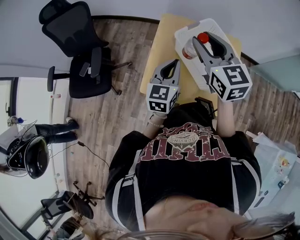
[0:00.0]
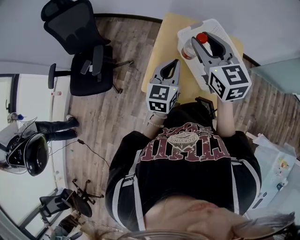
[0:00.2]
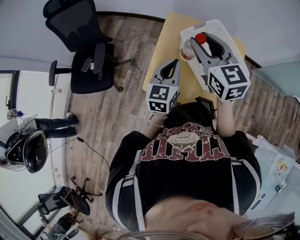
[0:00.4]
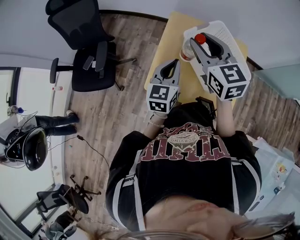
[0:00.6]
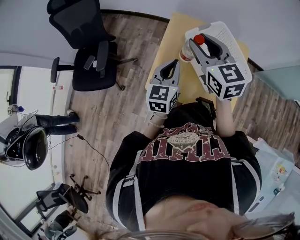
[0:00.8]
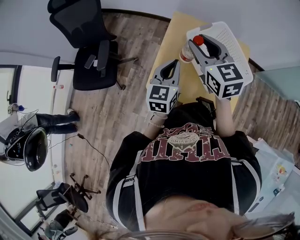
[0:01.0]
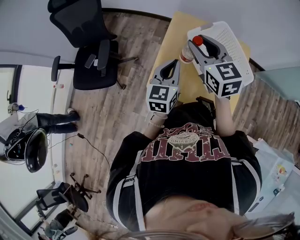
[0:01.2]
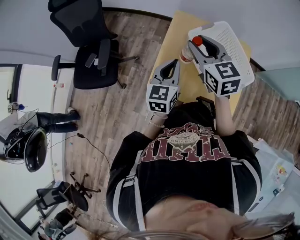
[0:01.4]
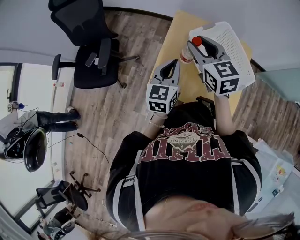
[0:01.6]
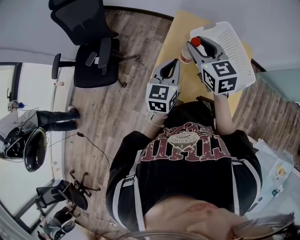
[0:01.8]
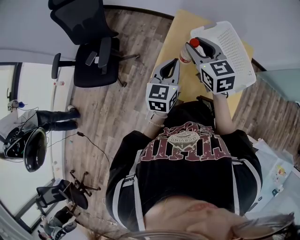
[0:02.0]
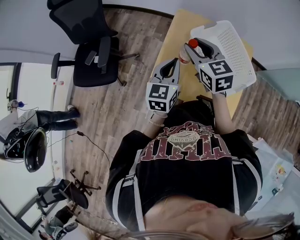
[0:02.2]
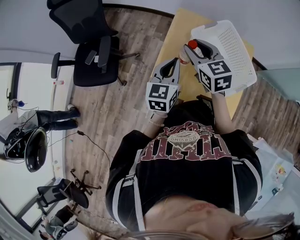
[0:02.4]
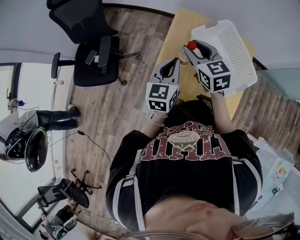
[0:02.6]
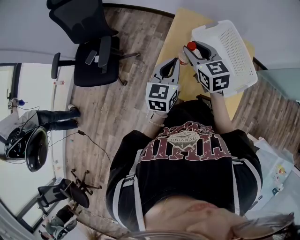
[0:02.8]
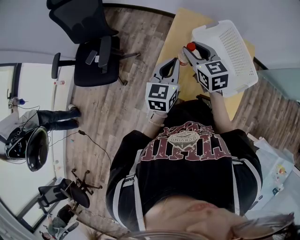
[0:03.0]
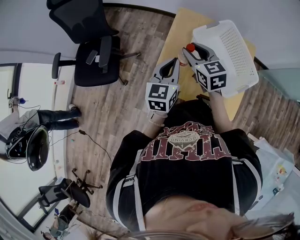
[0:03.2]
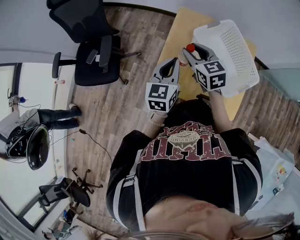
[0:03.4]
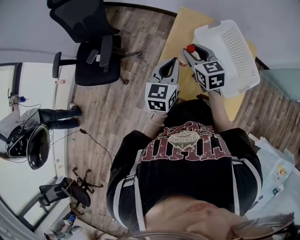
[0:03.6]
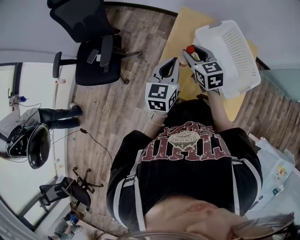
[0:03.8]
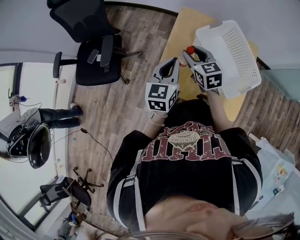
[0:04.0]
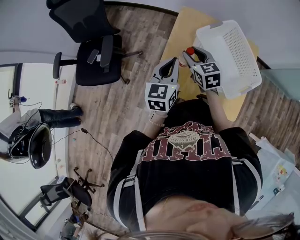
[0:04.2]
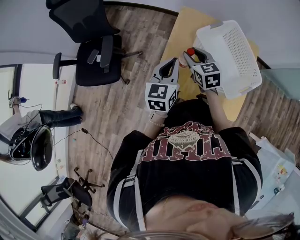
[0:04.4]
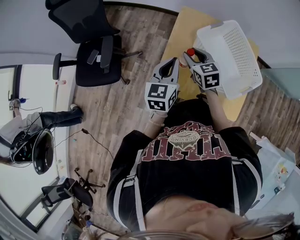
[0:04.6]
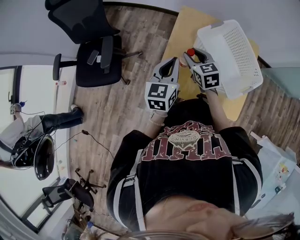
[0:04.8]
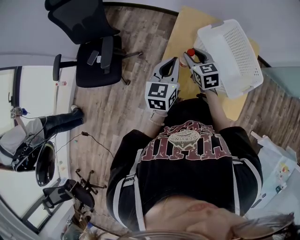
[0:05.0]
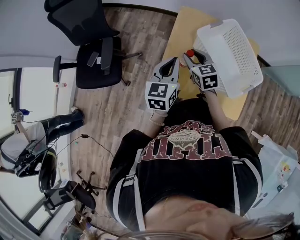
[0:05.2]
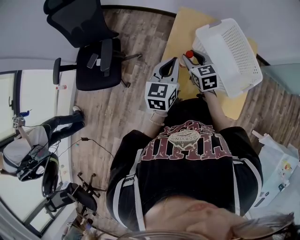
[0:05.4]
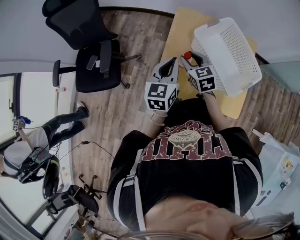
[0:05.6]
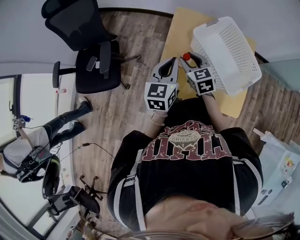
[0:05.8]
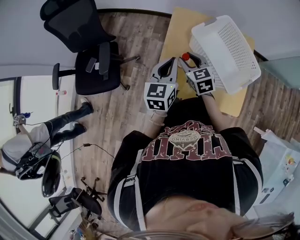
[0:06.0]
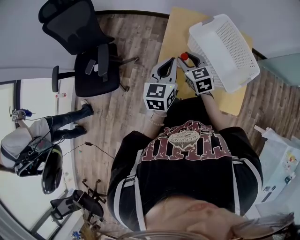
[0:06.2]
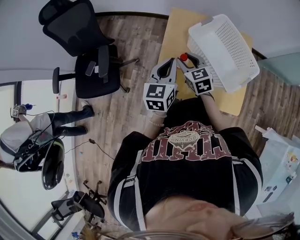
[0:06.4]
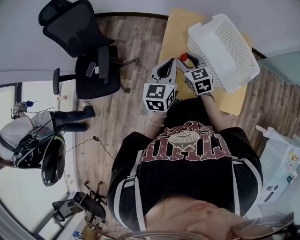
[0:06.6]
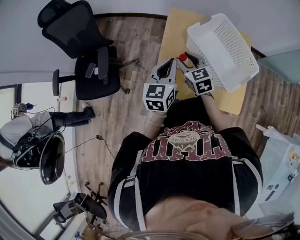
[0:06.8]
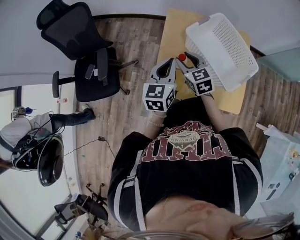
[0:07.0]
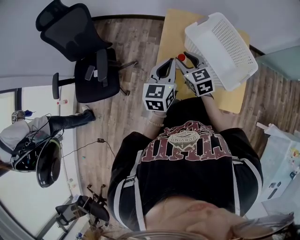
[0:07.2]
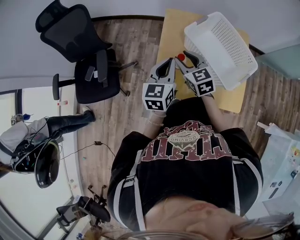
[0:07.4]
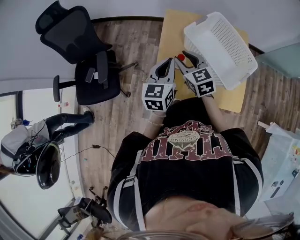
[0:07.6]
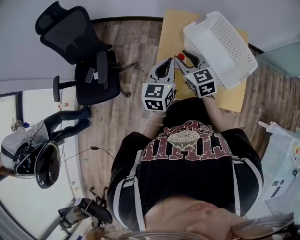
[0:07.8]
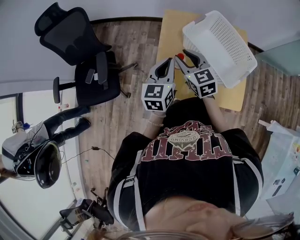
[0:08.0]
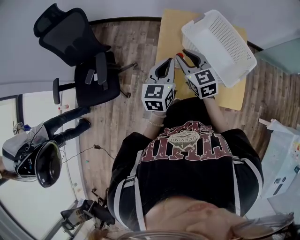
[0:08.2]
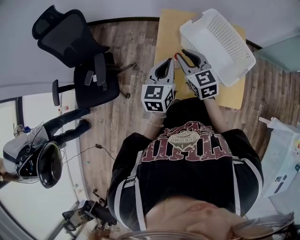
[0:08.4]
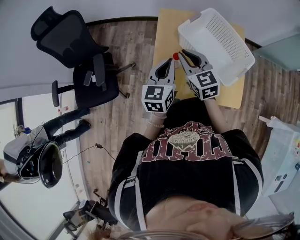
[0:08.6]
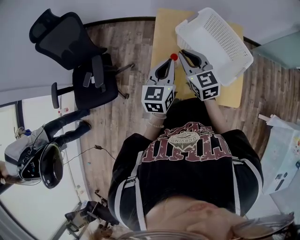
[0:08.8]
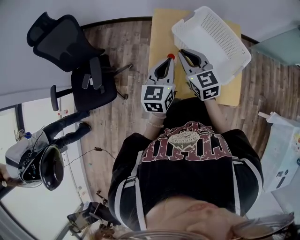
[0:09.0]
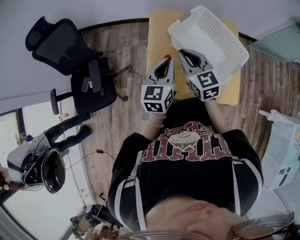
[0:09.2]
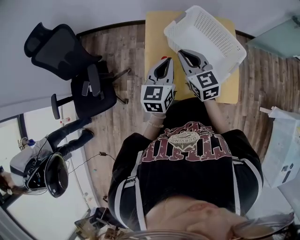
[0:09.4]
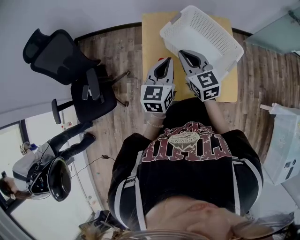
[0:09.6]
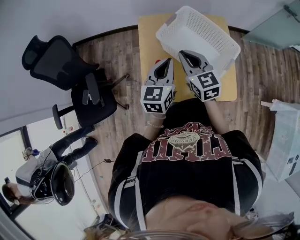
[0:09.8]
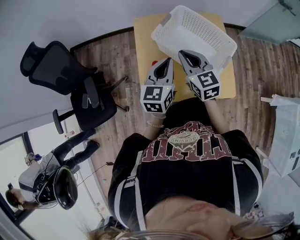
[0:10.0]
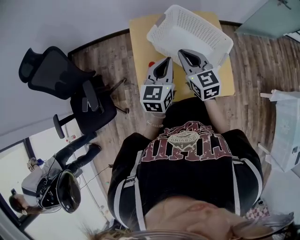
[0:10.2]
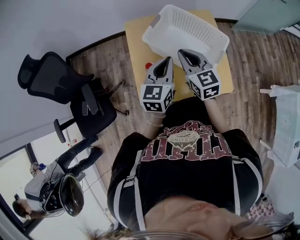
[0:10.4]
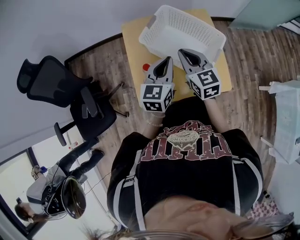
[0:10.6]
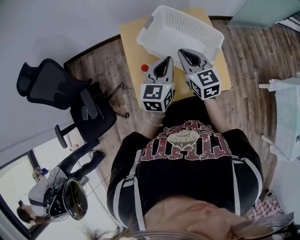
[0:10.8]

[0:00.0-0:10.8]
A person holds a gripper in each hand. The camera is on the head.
0:00.0 to 0:01.6: The left gripper goes about 5 cm to the left. Meanwhile the right gripper goes approximately 10 cm to the left and downward.
0:01.6 to 0:03.0: The right gripper is displaced downward by approximately 10 cm.
0:03.0 to 0:04.6: The right gripper heads downward, covering approximately 10 cm.
0:04.6 to 0:07.8: There are only small adjustments of the grippers.
0:07.8 to 0:09.2: Both grippers travel together to the right, about 5 cm. The right gripper closes up.
0:09.2 to 0:10.8: The two grippers go about 10 cm to the right.

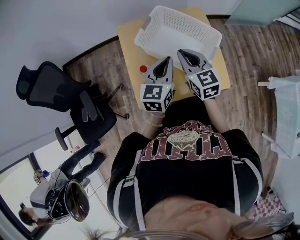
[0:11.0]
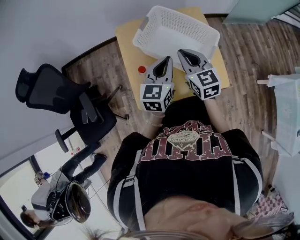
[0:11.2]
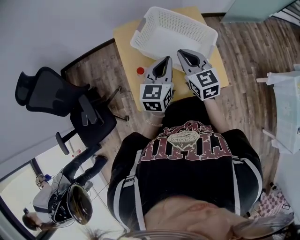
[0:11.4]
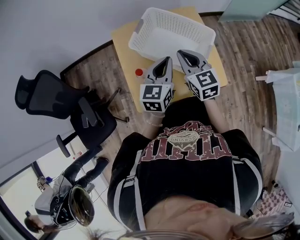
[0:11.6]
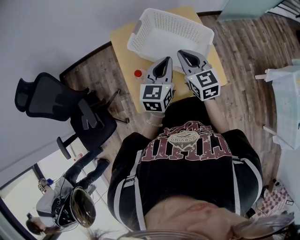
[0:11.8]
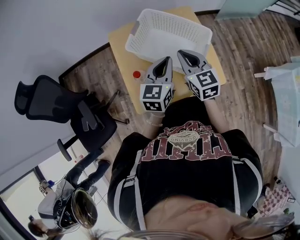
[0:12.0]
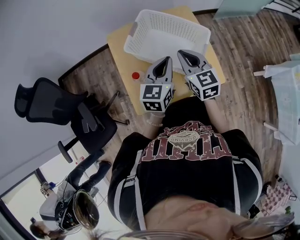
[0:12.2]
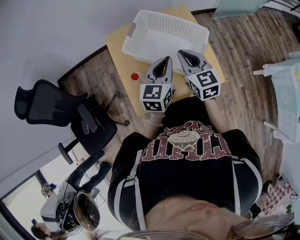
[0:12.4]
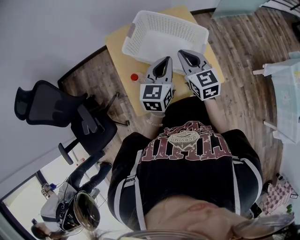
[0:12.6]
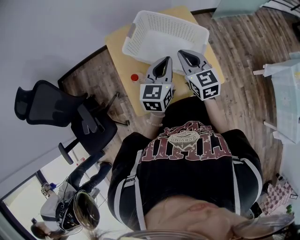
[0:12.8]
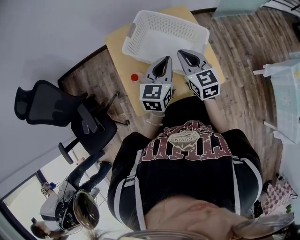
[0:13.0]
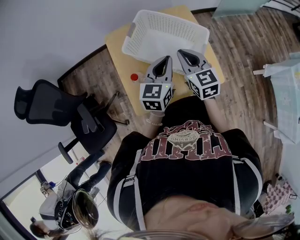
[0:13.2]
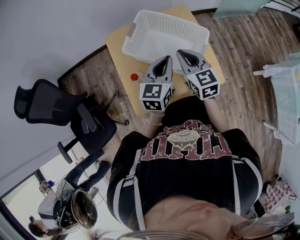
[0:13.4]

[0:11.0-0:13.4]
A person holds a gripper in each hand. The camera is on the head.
0:11.0 to 0:13.4: The grippers move only a little.

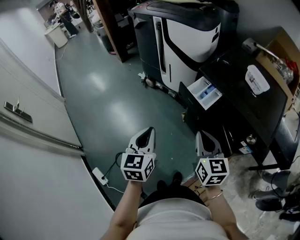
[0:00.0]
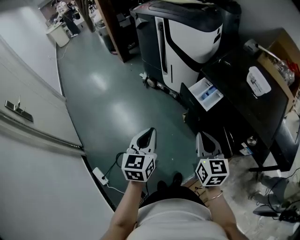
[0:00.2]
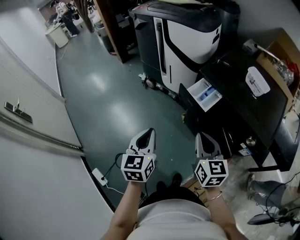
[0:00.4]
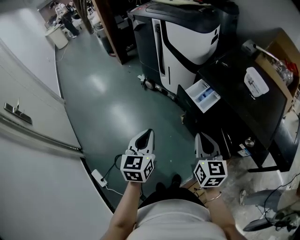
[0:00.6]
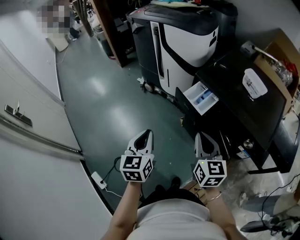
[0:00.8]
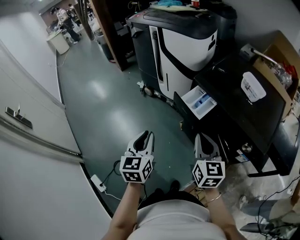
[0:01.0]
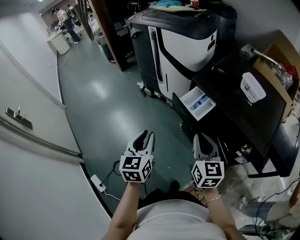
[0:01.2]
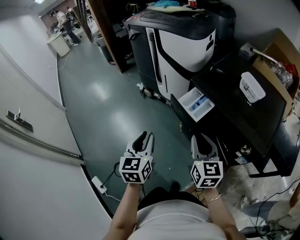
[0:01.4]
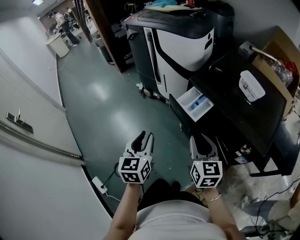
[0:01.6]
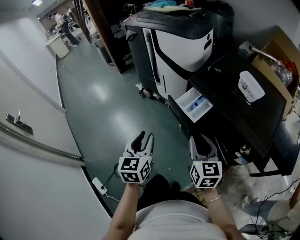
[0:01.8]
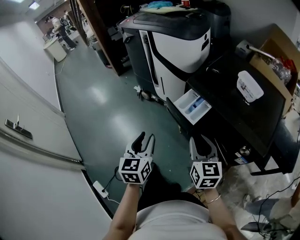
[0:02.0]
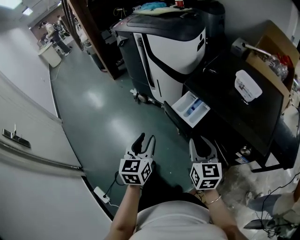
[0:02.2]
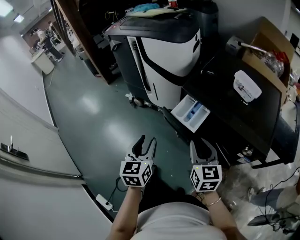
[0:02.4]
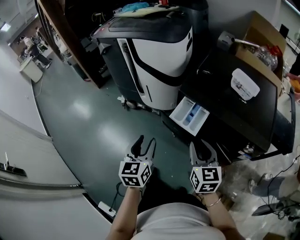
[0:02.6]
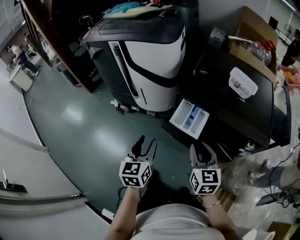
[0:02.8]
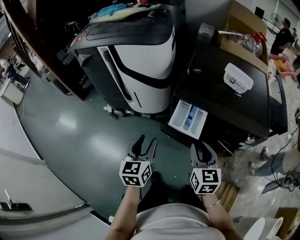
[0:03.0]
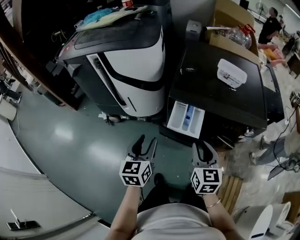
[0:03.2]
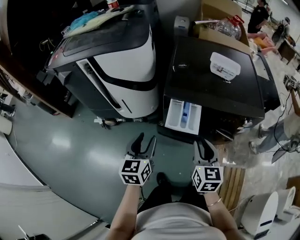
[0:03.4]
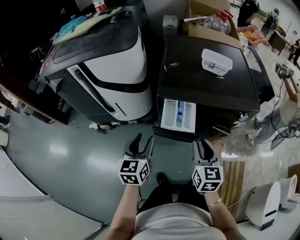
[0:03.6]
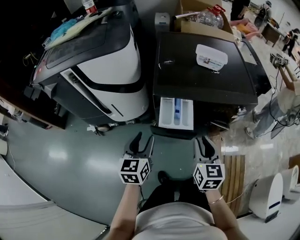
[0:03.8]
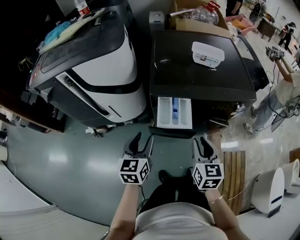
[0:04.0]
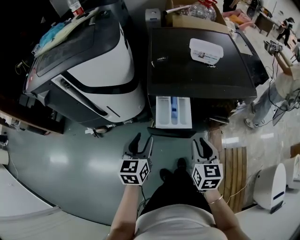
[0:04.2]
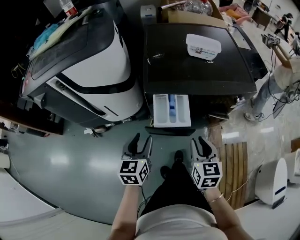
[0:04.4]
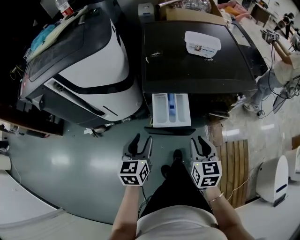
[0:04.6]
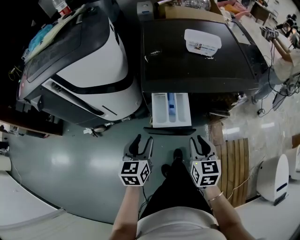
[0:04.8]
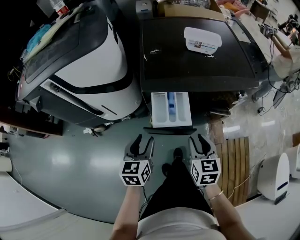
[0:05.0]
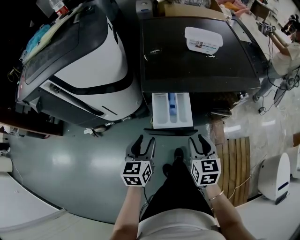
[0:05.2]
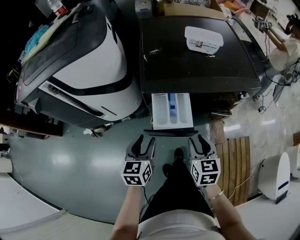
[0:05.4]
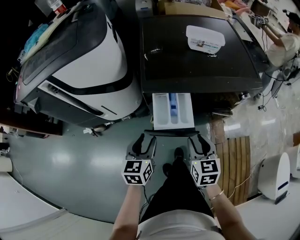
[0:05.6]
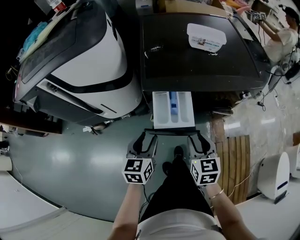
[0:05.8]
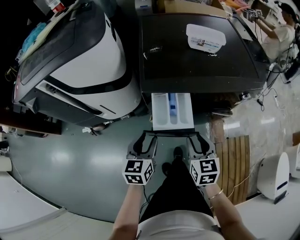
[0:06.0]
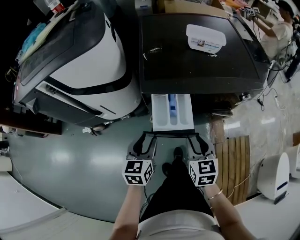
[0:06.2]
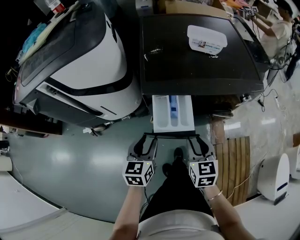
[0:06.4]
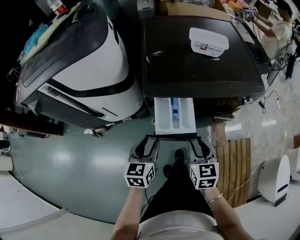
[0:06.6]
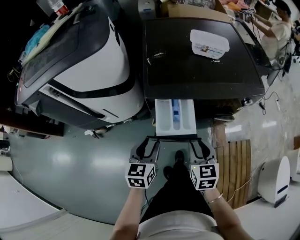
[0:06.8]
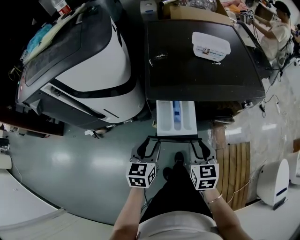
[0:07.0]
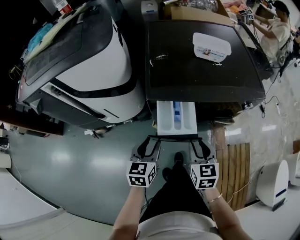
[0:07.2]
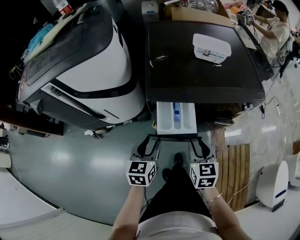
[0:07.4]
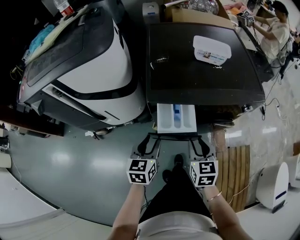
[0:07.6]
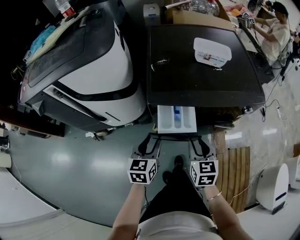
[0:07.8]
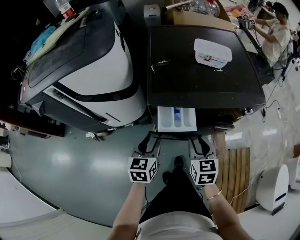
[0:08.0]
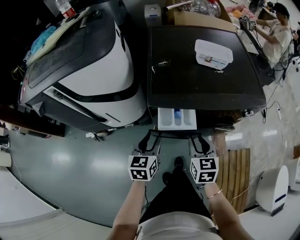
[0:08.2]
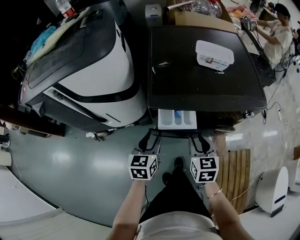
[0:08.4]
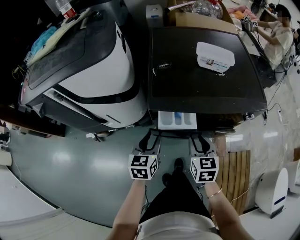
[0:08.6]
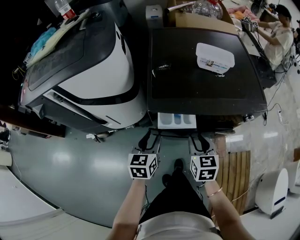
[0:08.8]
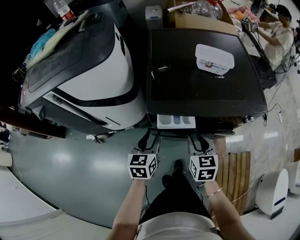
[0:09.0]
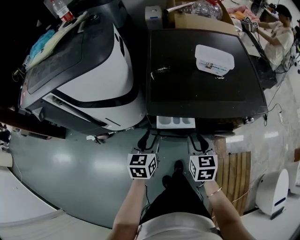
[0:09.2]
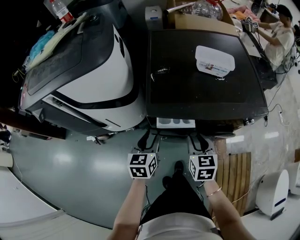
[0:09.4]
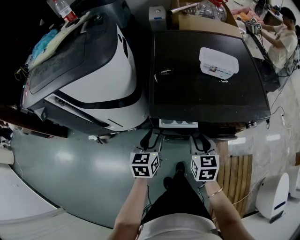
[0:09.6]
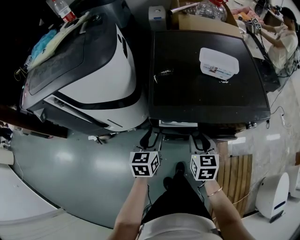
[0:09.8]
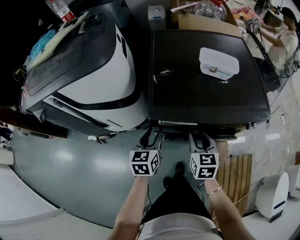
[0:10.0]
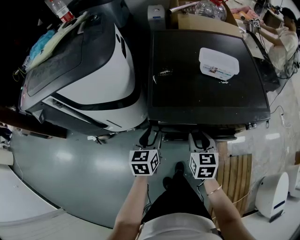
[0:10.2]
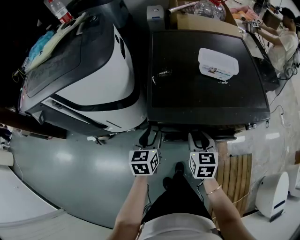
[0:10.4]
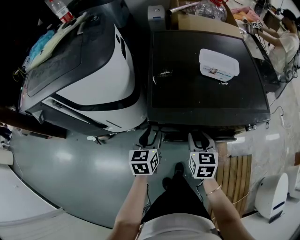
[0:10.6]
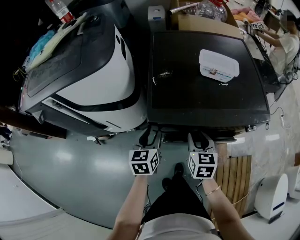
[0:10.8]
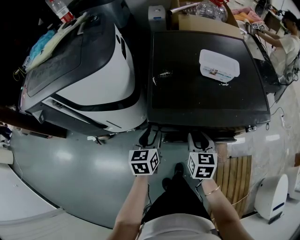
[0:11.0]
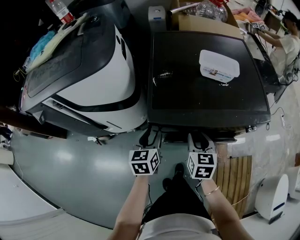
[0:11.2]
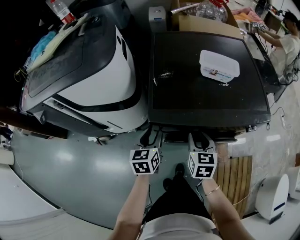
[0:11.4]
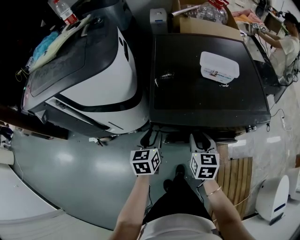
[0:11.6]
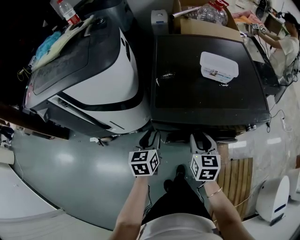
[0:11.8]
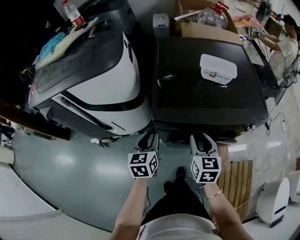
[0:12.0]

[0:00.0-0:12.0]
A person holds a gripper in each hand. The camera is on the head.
0:00.0 to 0:01.6: The left gripper moves about 5 cm, and opens its fingers, while the right gripper moves some 5 cm, and opens up.
0:01.6 to 0:03.0: The right gripper changes place by roughly 10 cm, and changes its angle by about 30 degrees. Meanwhile the left gripper moves approximately 20 cm, and turns by roughly 30 degrees.
0:03.0 to 0:04.4: The right gripper moves downward, some 5 cm, and turns by about 30 degrees. Meanwhile the left gripper goes approximately 5 cm forward, and rotates about 20 degrees.
0:04.4 to 0:06.0: The left gripper shifts by approximately 5 cm. The right gripper ends up approximately 5 cm from where it was.
0:06.0 to 0:07.6: The grippers stay close to where they were, moving slightly.
0:07.6 to 0:09.0: Both grippers move forward, about 5 cm.
0:09.0 to 0:12.0: The grippers move only a little.
